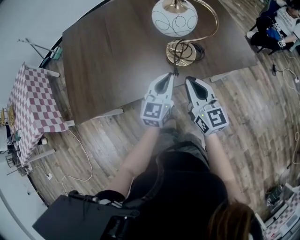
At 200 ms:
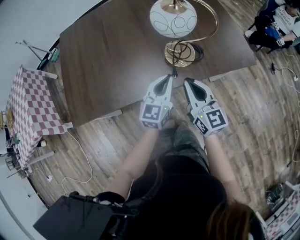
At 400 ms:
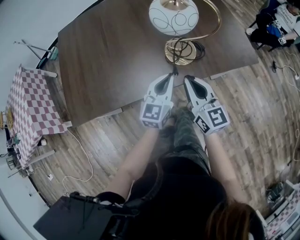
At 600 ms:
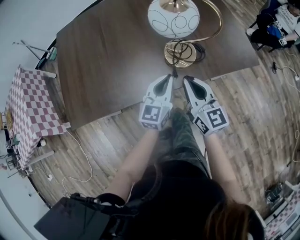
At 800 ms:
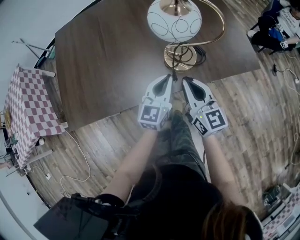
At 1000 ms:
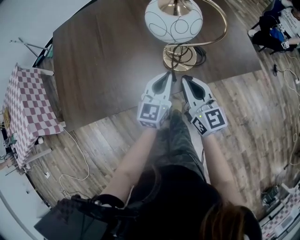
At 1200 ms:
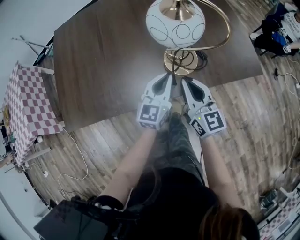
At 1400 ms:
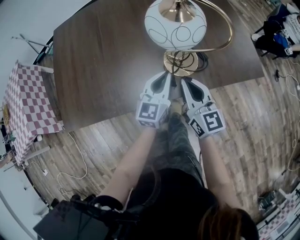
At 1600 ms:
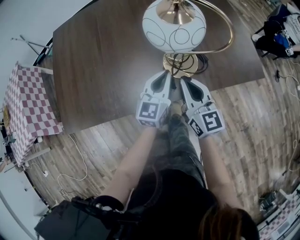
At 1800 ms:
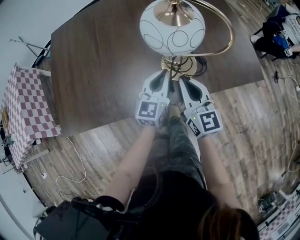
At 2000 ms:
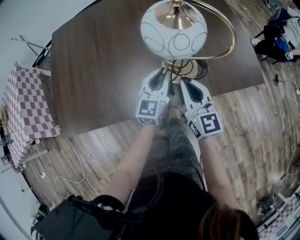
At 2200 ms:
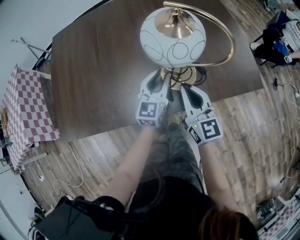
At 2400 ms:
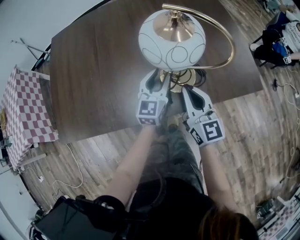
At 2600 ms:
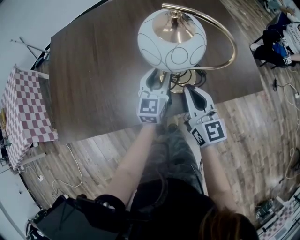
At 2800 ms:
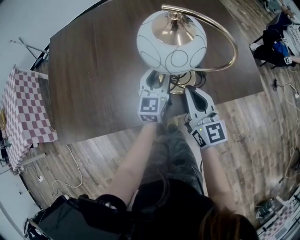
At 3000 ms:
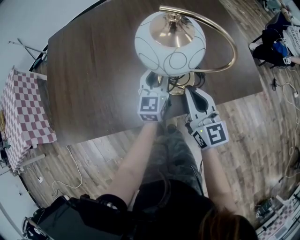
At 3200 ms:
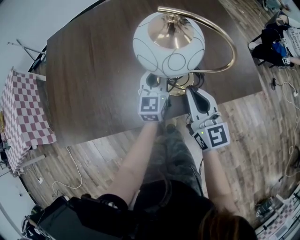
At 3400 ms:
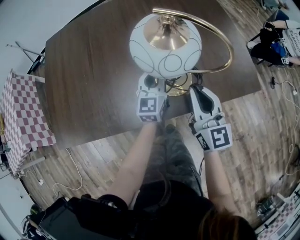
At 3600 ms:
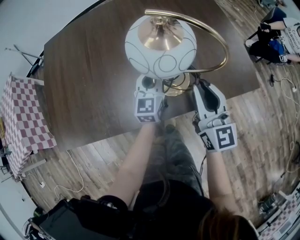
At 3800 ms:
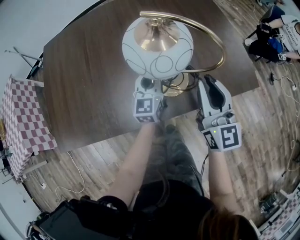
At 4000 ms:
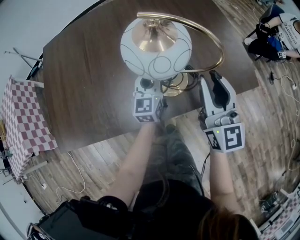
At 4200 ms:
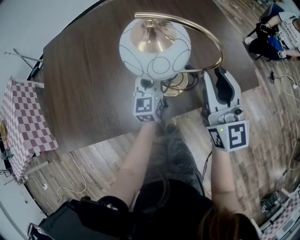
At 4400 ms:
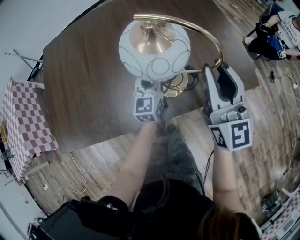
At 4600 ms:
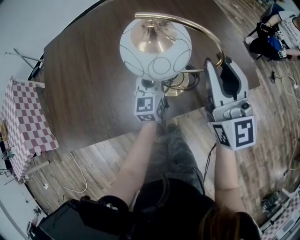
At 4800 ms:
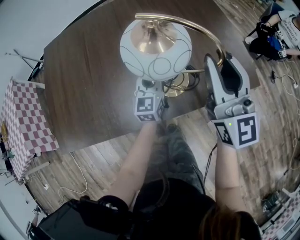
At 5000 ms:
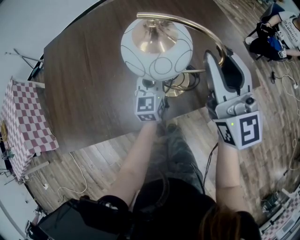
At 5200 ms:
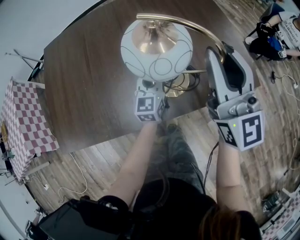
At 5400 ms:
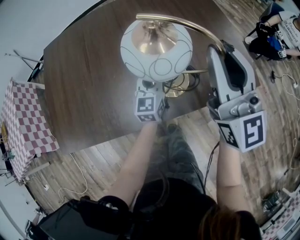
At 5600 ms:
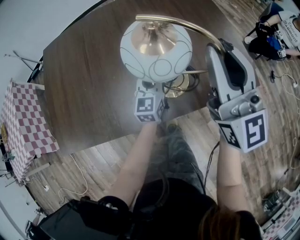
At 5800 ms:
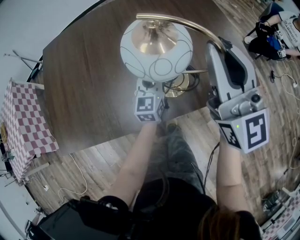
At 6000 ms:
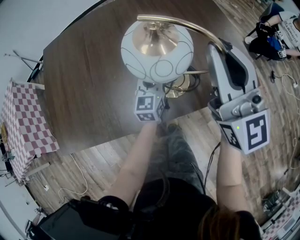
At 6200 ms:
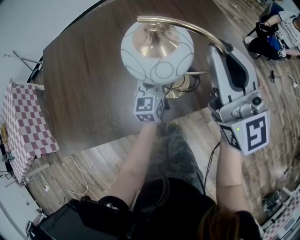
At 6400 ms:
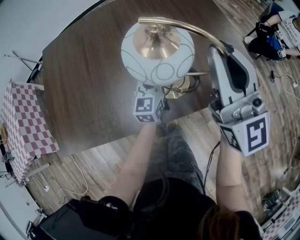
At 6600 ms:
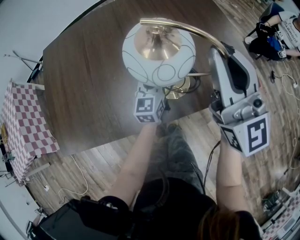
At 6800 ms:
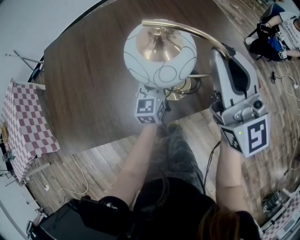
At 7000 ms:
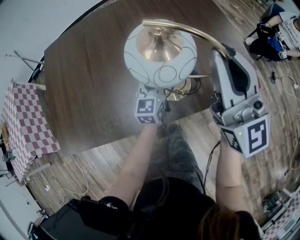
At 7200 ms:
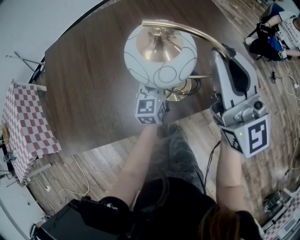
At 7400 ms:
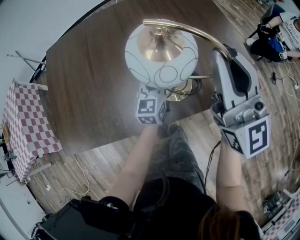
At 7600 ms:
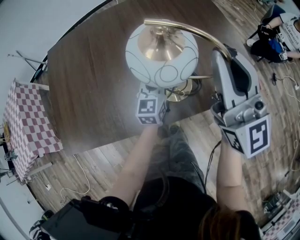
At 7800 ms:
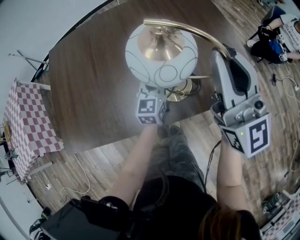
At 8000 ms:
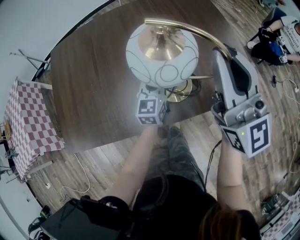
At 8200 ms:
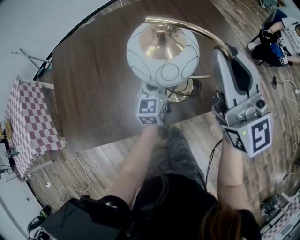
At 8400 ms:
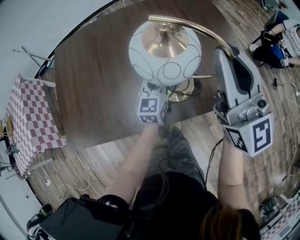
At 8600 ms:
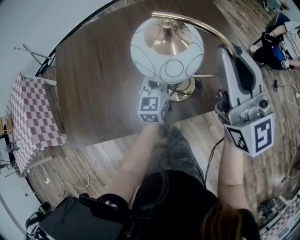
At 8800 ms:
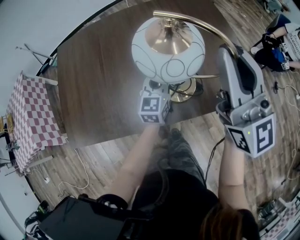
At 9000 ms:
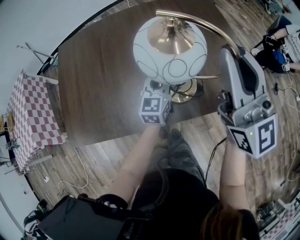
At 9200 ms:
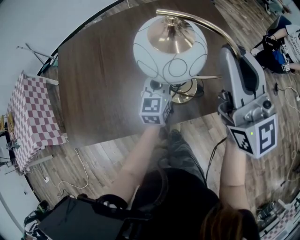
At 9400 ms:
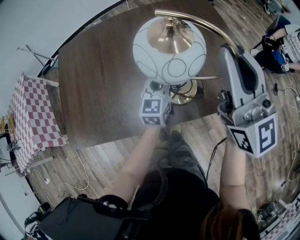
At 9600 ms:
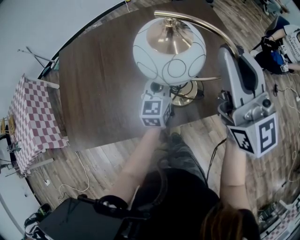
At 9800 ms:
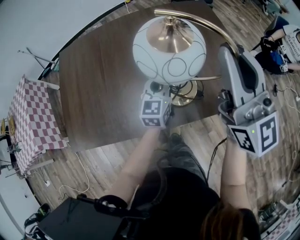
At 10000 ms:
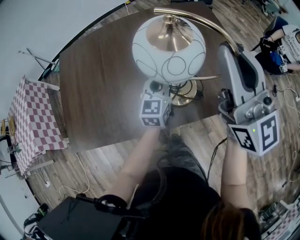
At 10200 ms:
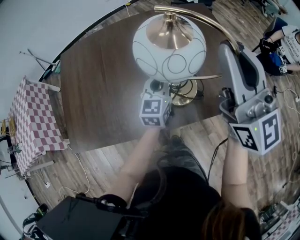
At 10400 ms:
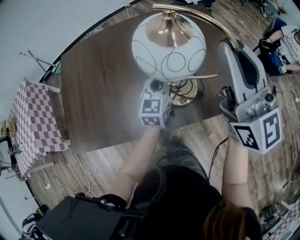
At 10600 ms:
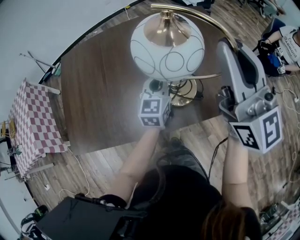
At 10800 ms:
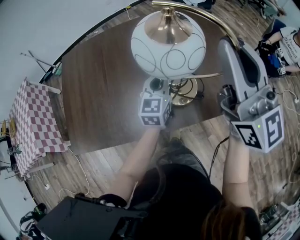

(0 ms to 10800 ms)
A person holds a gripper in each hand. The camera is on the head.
0 ms - 1600 ms: The grippers both shift forward by some 10 cm.
1600 ms - 3000 ms: The left gripper shifts approximately 10 cm forward, and opens up.
3000 ms - 4600 ms: The right gripper is displaced upward and to the right by some 15 cm, rotates some 20 degrees, and opens up.
4600 ms - 6200 ms: The right gripper is displaced upward by some 5 cm.
6200 ms - 7800 ms: The grippers stay close to where they were, moving slightly.
7800 ms - 9200 ms: Both grippers move upward, roughly 5 cm.
9200 ms - 10800 ms: Both grippers travel together upward, some 5 cm.

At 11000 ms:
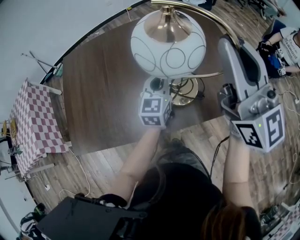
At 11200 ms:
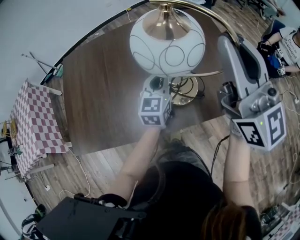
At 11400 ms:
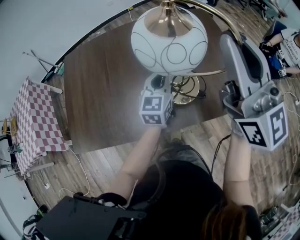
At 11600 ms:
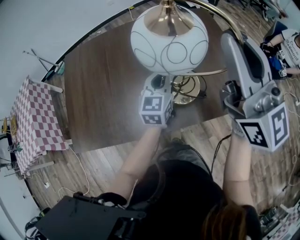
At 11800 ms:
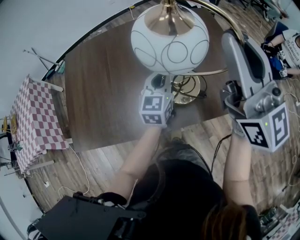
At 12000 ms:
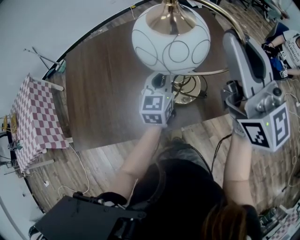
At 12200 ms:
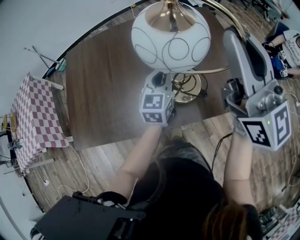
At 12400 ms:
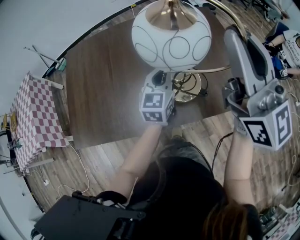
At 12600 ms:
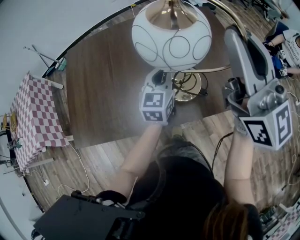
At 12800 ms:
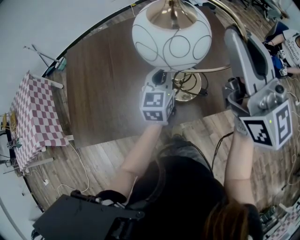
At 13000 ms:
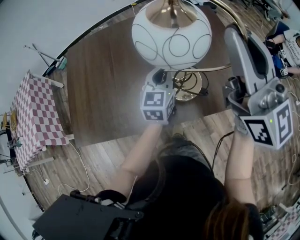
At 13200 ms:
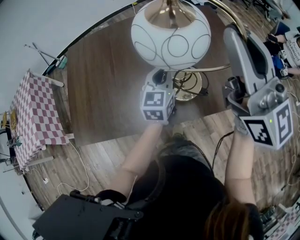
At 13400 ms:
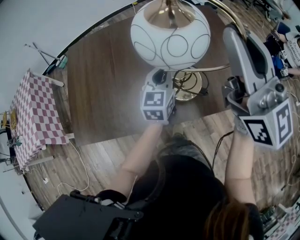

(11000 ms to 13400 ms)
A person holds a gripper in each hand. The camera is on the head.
11000 ms - 13400 ms: The grippers move only a little.

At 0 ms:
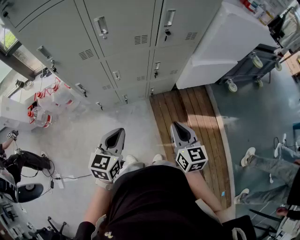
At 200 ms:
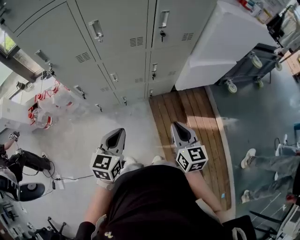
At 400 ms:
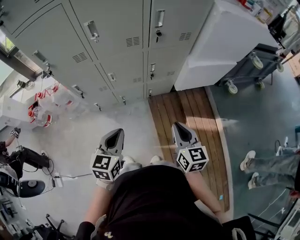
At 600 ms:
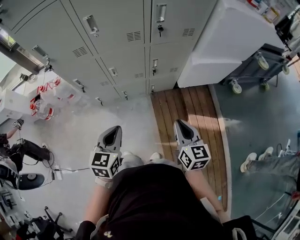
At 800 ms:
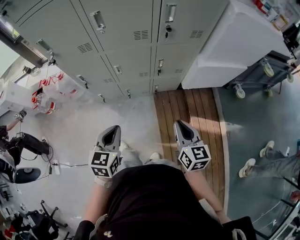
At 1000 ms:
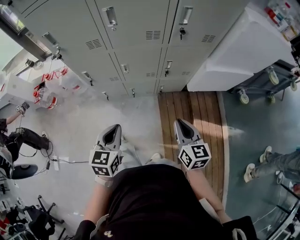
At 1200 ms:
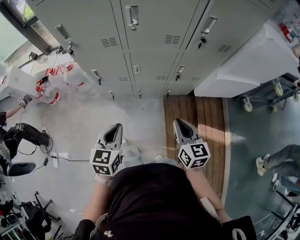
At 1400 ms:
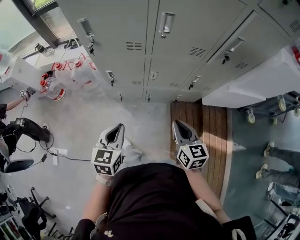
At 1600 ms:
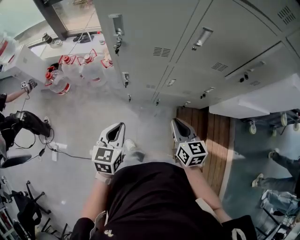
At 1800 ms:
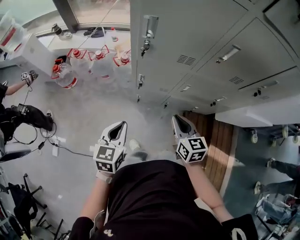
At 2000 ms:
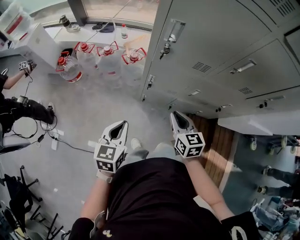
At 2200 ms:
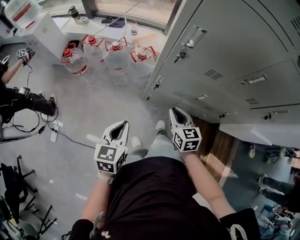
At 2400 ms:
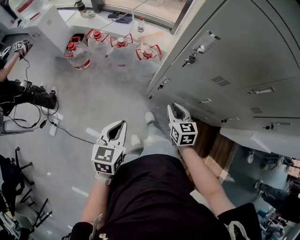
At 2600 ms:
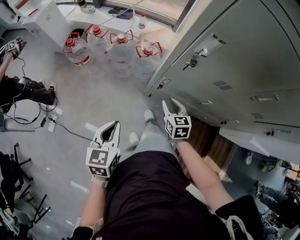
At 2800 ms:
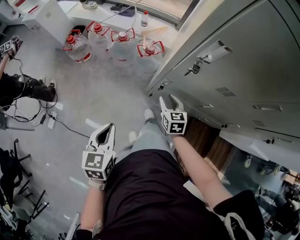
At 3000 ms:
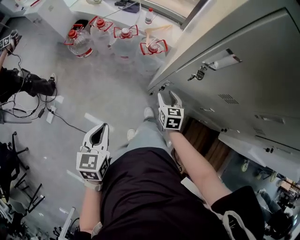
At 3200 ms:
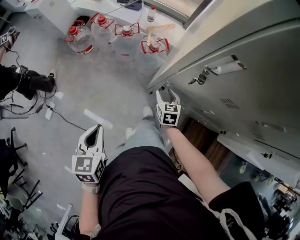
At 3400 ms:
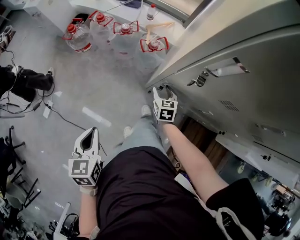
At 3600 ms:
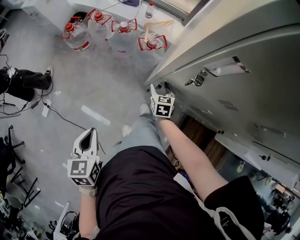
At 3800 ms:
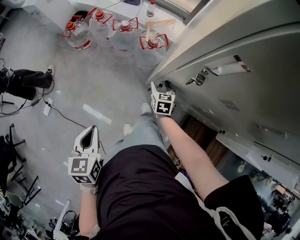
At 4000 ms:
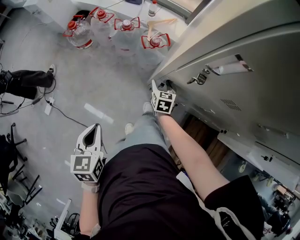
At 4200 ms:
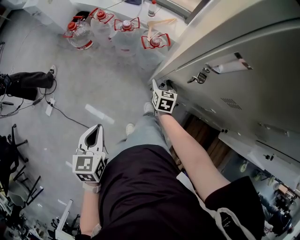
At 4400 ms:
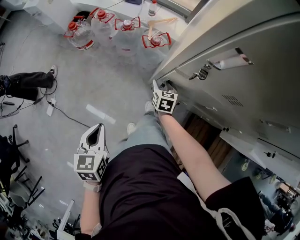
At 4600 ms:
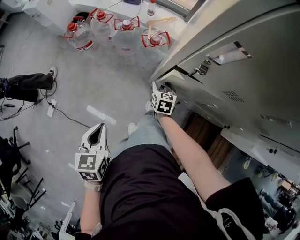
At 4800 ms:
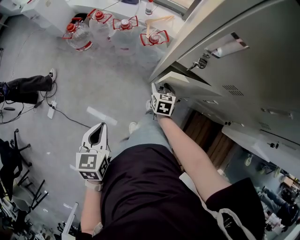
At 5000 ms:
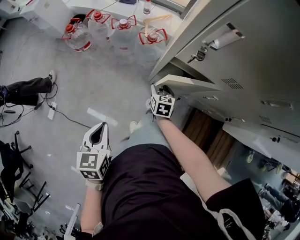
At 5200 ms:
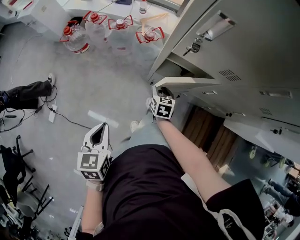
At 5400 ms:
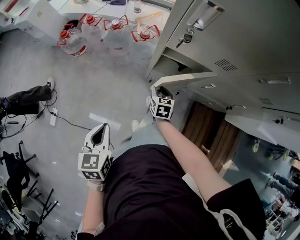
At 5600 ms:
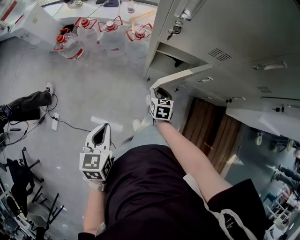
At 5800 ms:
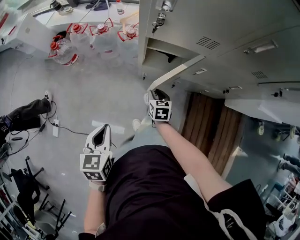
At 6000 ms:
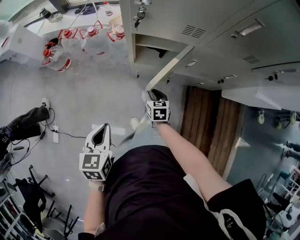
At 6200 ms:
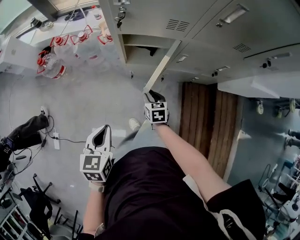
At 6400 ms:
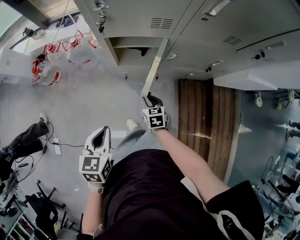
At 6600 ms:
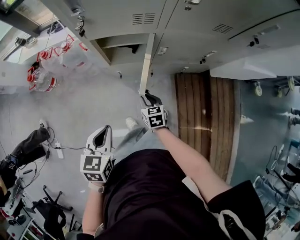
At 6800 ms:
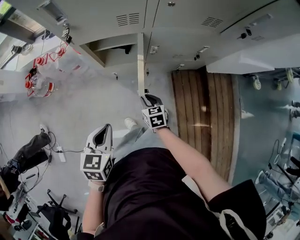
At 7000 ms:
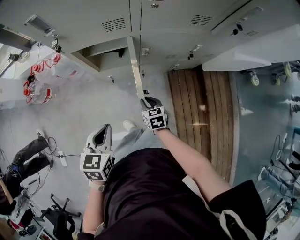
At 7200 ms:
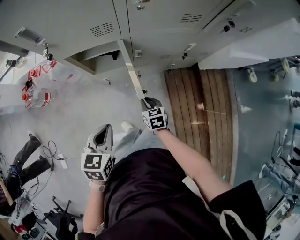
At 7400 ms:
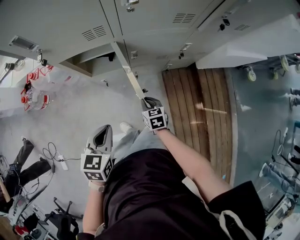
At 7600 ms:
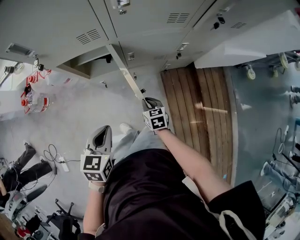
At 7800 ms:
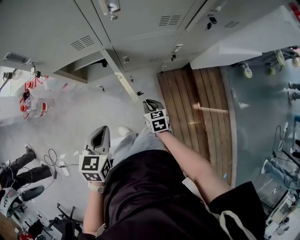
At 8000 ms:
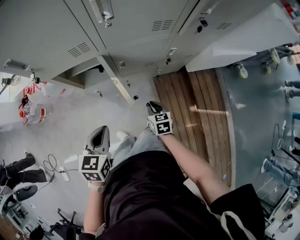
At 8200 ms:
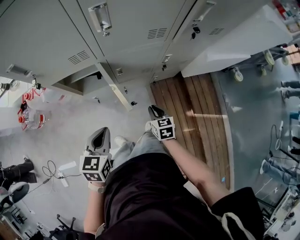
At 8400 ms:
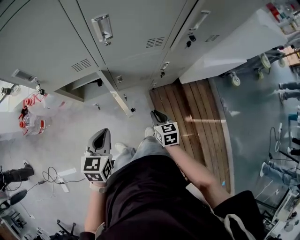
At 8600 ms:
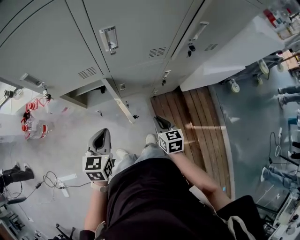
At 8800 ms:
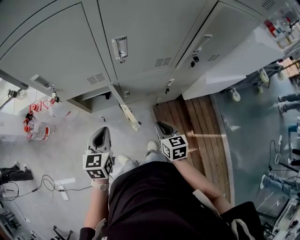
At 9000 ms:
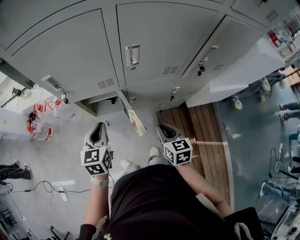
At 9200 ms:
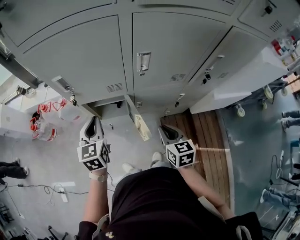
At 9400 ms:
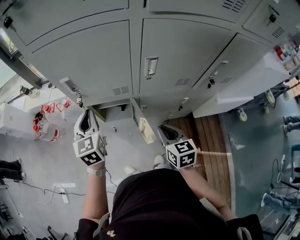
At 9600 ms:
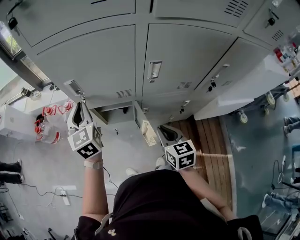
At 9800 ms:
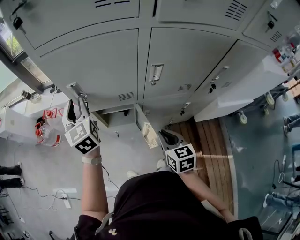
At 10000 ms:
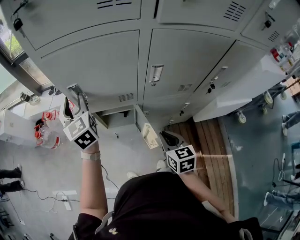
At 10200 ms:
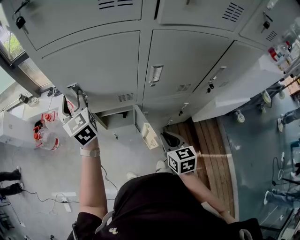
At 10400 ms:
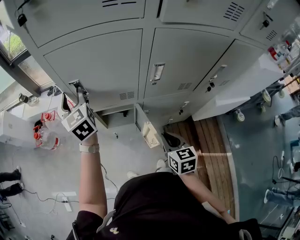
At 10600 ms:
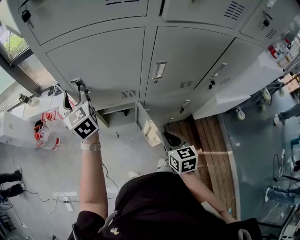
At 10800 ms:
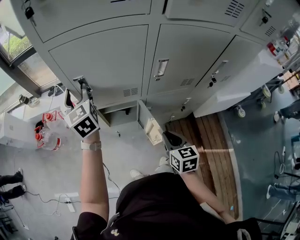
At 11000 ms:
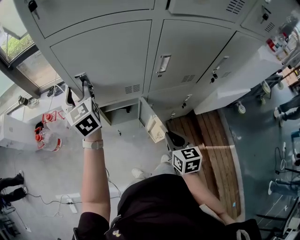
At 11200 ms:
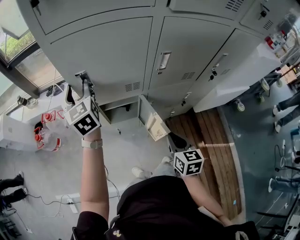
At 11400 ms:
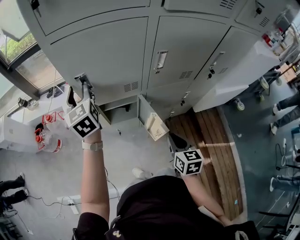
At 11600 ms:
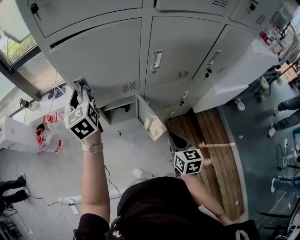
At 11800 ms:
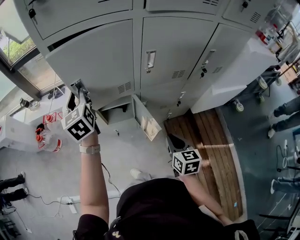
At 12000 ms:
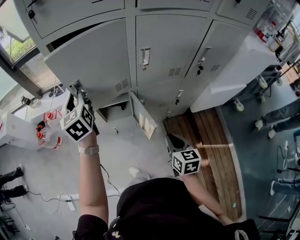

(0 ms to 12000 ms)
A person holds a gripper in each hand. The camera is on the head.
0 ms - 1600 ms: The left gripper heads to the left, covering roughly 25 cm, and swivels roughly 20 degrees, while the right gripper goes approximately 30 cm to the left and forward, and rotates about 20 degrees.
1600 ms - 3000 ms: The left gripper goes approximately 20 cm to the left, and swivels approximately 30 degrees. The right gripper goes roughly 40 cm forward, to the left and downward, swivels roughly 20 degrees, and opens its fingers.
3000 ms - 4400 ms: The right gripper goes roughly 5 cm downward.
4400 ms - 6000 ms: The left gripper goes some 10 cm backward and to the right, and turns by roughly 20 degrees; the right gripper moves backward, roughly 20 cm, and closes its fingers.
6000 ms - 7600 ms: The two grippers go some 20 cm to the right. The left gripper changes its angle by about 20 degrees.
7600 ms - 9000 ms: The right gripper travels upward by some 25 cm. The left gripper moves forward and upward, about 15 cm, and turns by about 20 degrees.
9000 ms - 10400 ms: The left gripper is displaced forward, upward and to the left by roughly 30 cm, turns by some 40 degrees, and opens; the right gripper is displaced to the left and upward by about 10 cm.
10400 ms - 12000 ms: Both grippers move backward, approximately 10 cm. The left gripper closes up.
